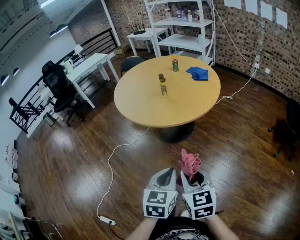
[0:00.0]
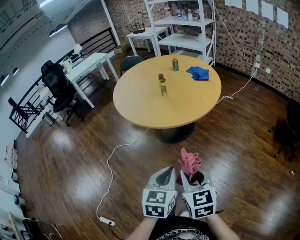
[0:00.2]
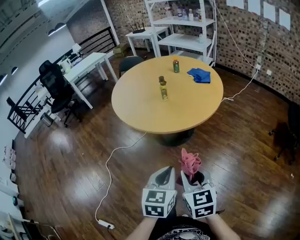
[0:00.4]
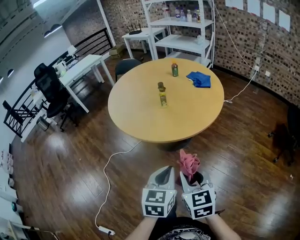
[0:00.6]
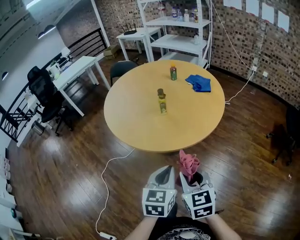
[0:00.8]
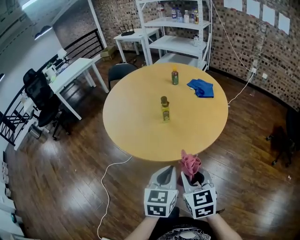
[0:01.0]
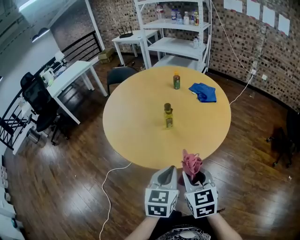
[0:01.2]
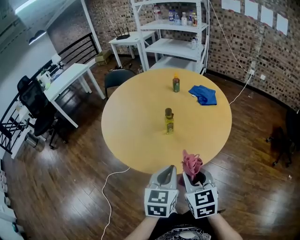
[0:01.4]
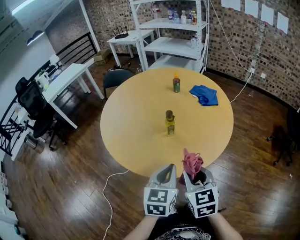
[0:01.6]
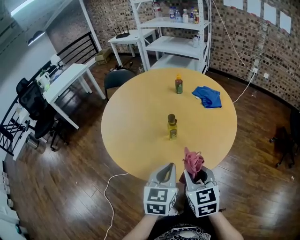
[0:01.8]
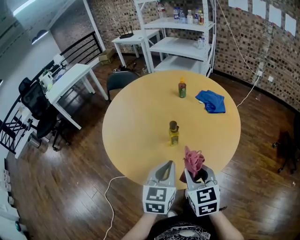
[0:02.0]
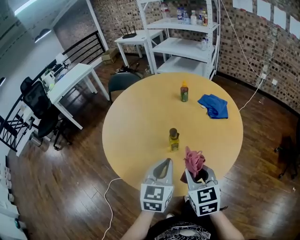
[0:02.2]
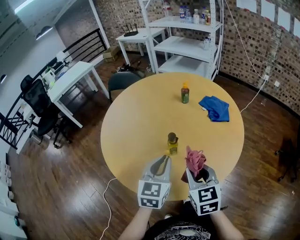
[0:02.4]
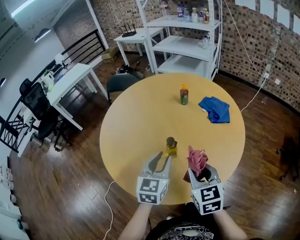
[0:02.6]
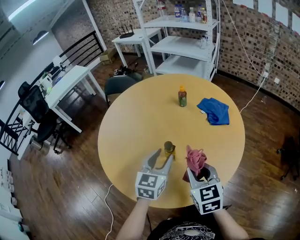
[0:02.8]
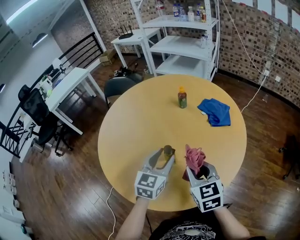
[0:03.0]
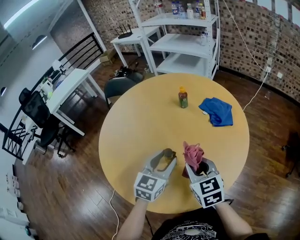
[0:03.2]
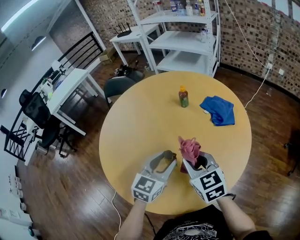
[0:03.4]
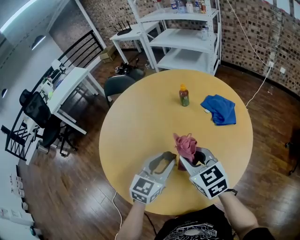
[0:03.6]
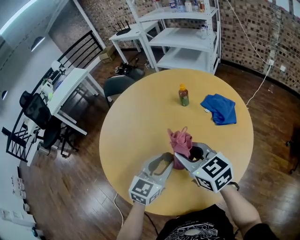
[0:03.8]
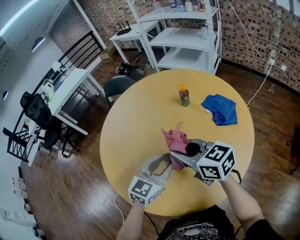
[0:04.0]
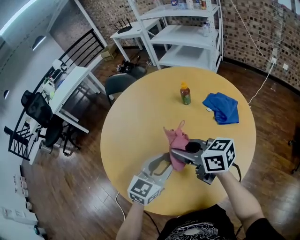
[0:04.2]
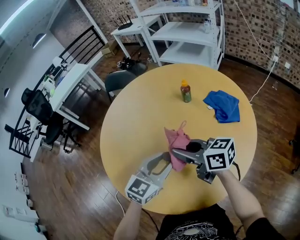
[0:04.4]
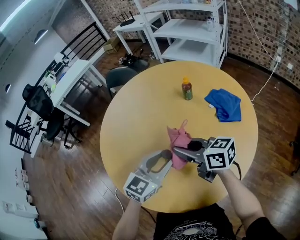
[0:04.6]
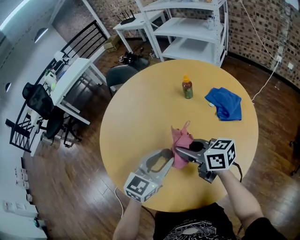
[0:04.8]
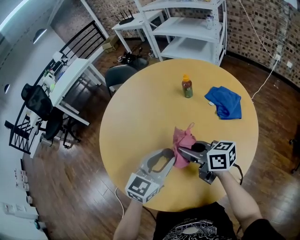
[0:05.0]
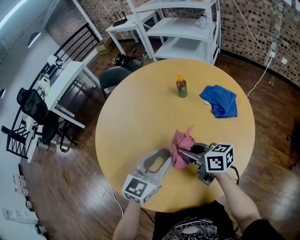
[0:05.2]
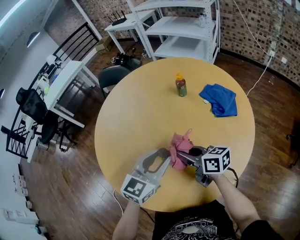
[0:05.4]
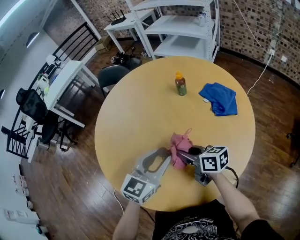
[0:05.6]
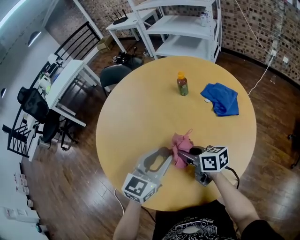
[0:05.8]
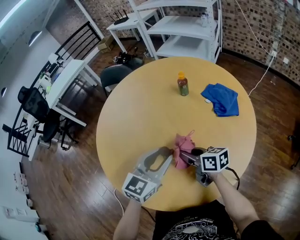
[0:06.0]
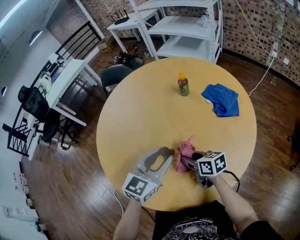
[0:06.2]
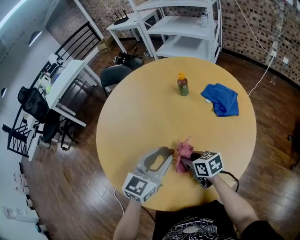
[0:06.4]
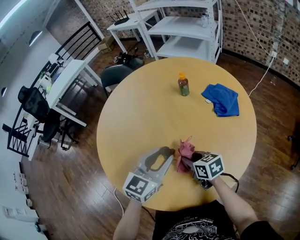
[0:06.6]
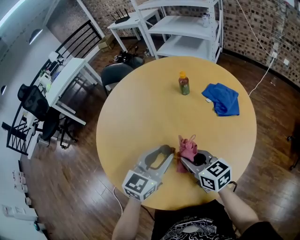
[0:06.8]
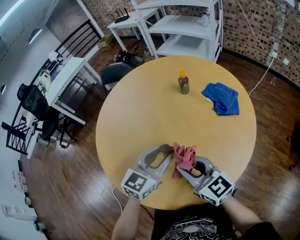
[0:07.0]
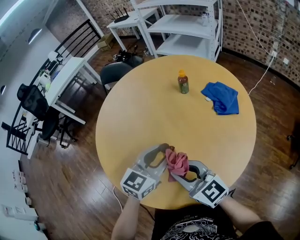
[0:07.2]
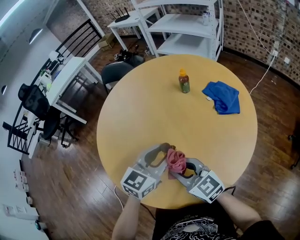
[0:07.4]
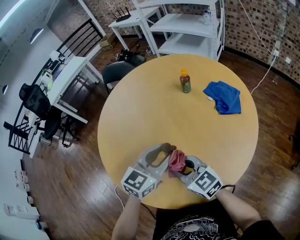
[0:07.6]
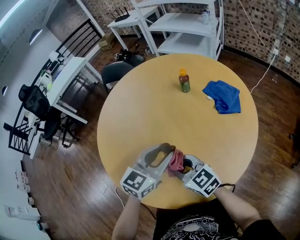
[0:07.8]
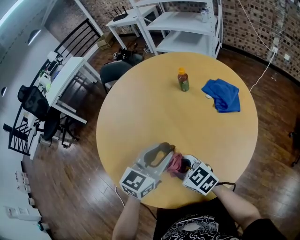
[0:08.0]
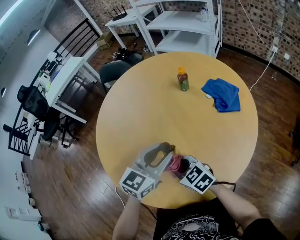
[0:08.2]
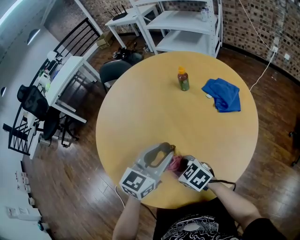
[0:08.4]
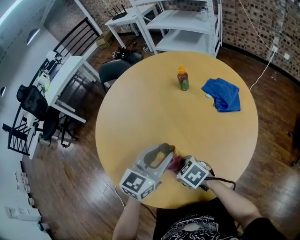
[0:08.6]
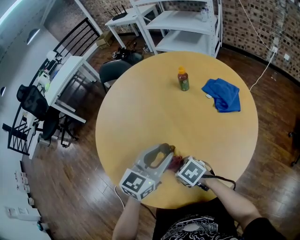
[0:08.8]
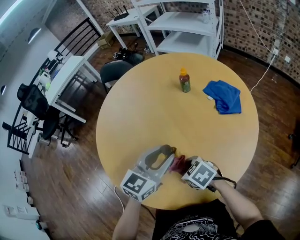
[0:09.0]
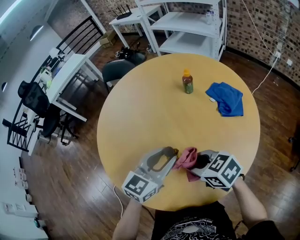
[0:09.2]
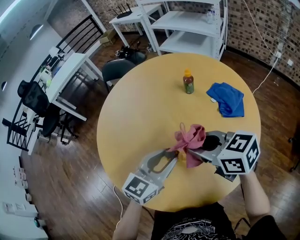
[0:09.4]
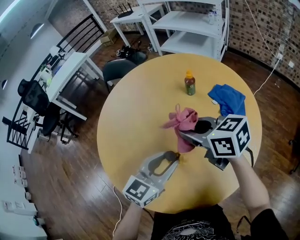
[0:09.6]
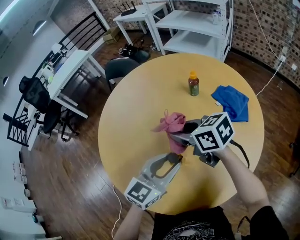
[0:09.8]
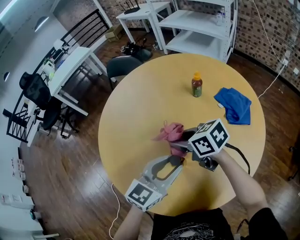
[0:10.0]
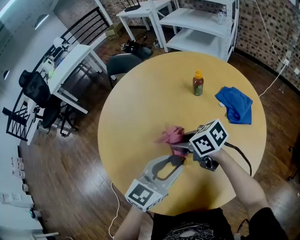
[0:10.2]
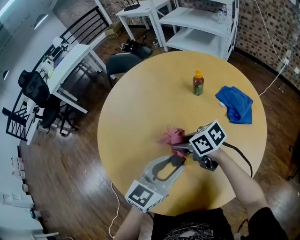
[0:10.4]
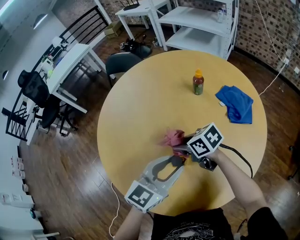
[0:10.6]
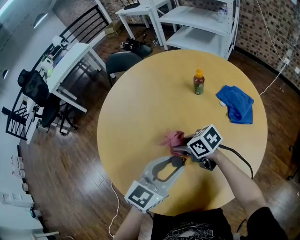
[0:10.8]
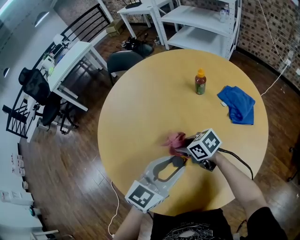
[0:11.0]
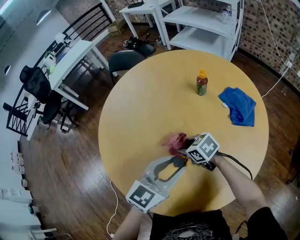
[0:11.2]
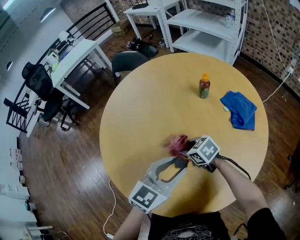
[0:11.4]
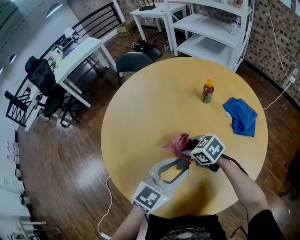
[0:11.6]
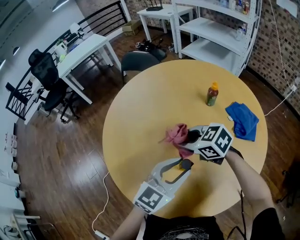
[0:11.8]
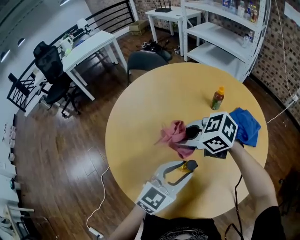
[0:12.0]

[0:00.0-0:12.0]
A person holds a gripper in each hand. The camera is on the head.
0:00.0 to 0:01.6: Both grippers move forward, approximately 35 cm.
0:01.6 to 0:03.0: The grippers both shift forward by some 25 cm. The left gripper opens.
0:03.0 to 0:04.4: The right gripper is displaced forward by roughly 10 cm, and turns by roughly 50 degrees.
0:04.4 to 0:06.0: The right gripper shifts some 15 cm downward, and changes its angle by approximately 20 degrees.
0:06.0 to 0:07.6: The right gripper swings up and down, some 15 cm each way, with 2 reversals, and turns by some 40 degrees.
0:07.6 to 0:09.0: The right gripper moves downward, about 10 cm, and points its fingers some 40 degrees further downward.
0:09.0 to 0:10.4: The right gripper moves forward, approximately 15 cm, travels upward and back again, approximately 20 cm each way, and changes its angle by about 30 degrees.
0:10.4 to 0:12.0: The right gripper travels upward by some 10 cm, and changes its angle by roughly 40 degrees.

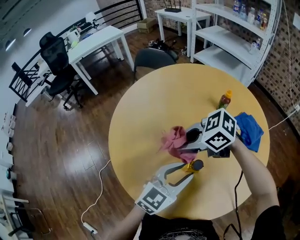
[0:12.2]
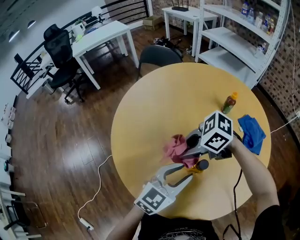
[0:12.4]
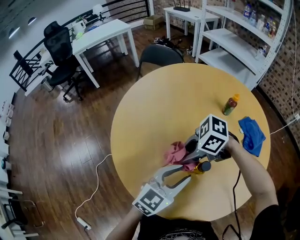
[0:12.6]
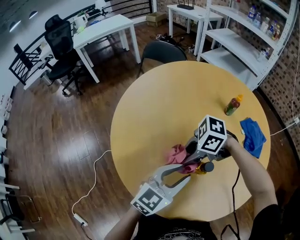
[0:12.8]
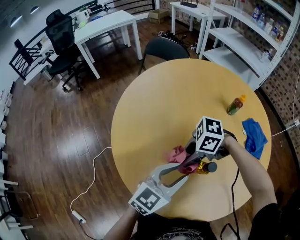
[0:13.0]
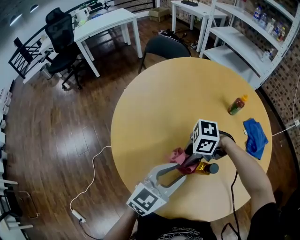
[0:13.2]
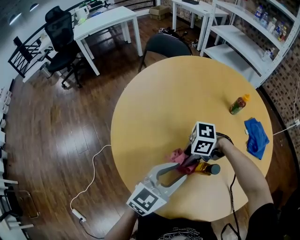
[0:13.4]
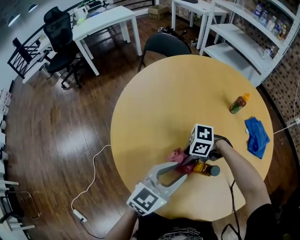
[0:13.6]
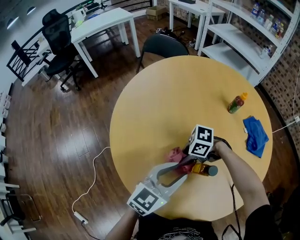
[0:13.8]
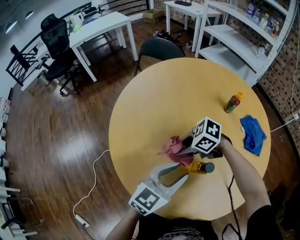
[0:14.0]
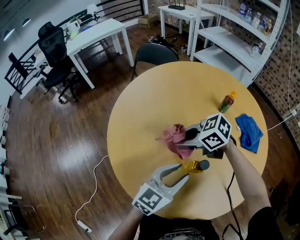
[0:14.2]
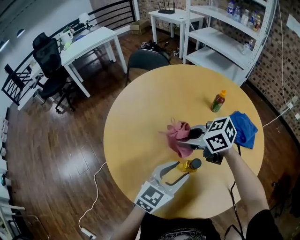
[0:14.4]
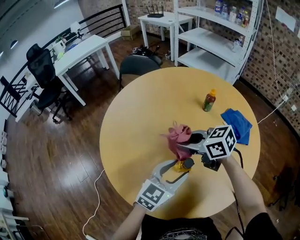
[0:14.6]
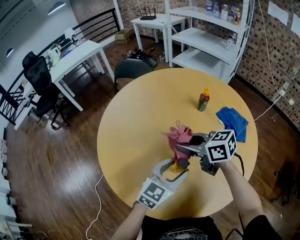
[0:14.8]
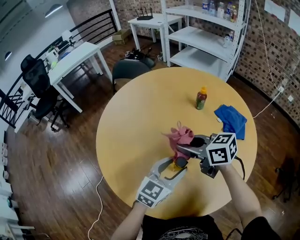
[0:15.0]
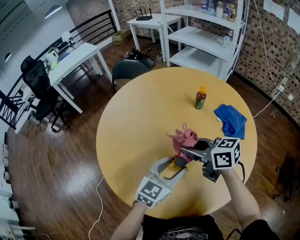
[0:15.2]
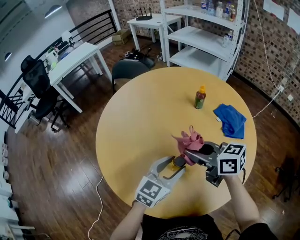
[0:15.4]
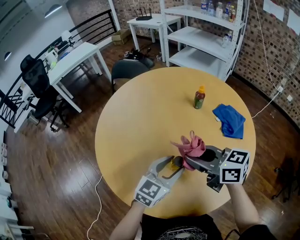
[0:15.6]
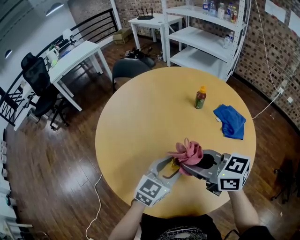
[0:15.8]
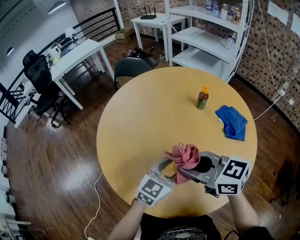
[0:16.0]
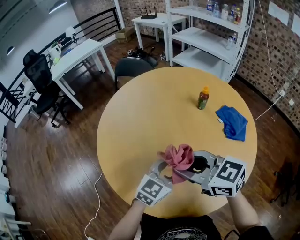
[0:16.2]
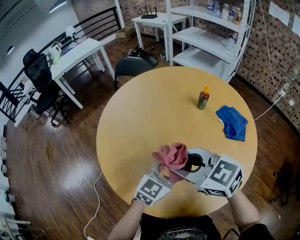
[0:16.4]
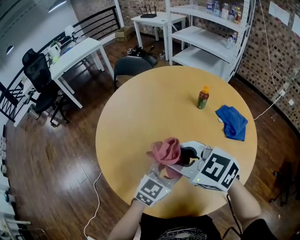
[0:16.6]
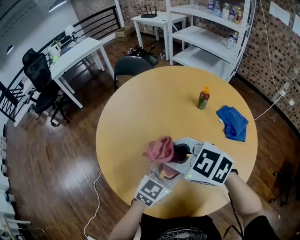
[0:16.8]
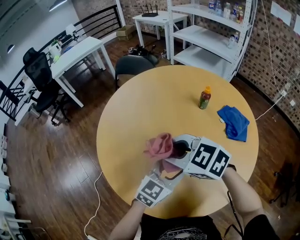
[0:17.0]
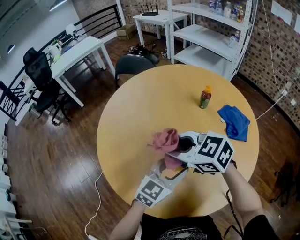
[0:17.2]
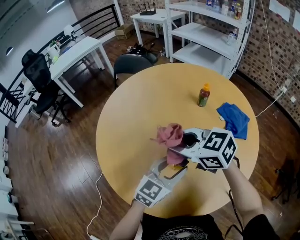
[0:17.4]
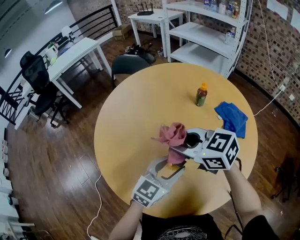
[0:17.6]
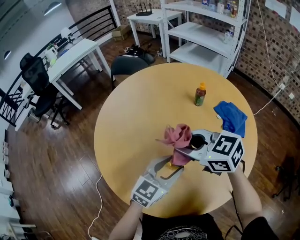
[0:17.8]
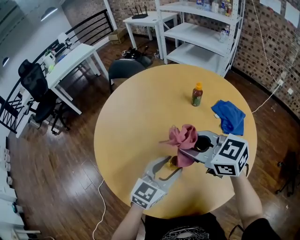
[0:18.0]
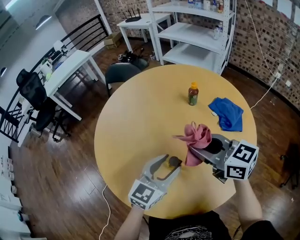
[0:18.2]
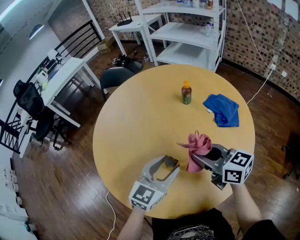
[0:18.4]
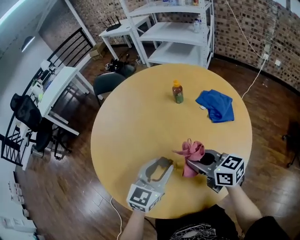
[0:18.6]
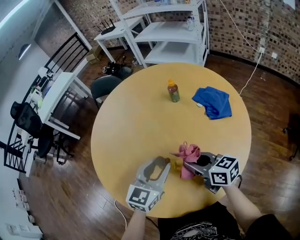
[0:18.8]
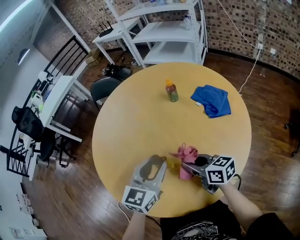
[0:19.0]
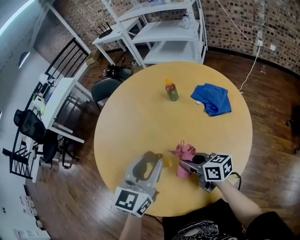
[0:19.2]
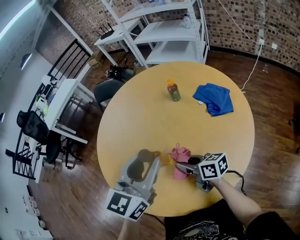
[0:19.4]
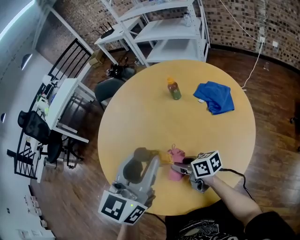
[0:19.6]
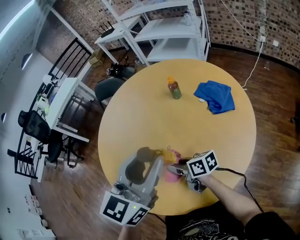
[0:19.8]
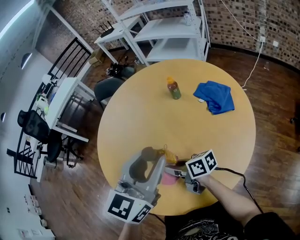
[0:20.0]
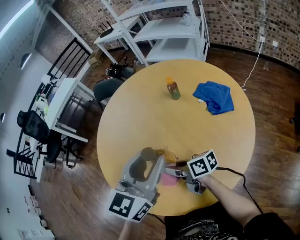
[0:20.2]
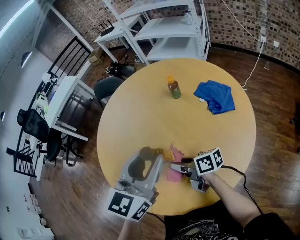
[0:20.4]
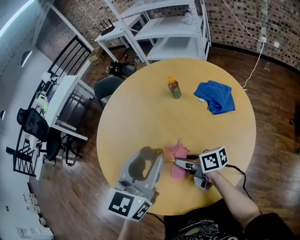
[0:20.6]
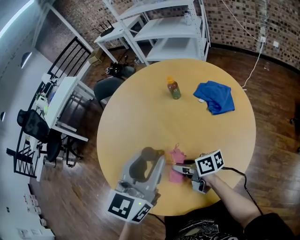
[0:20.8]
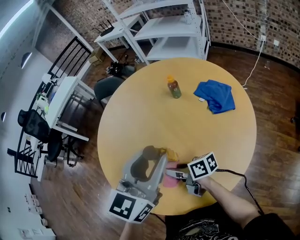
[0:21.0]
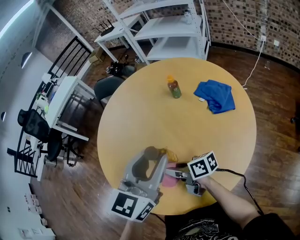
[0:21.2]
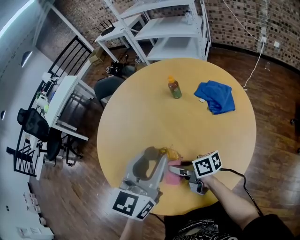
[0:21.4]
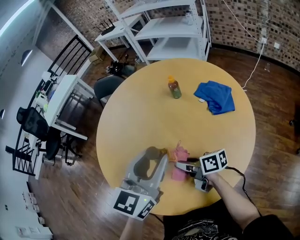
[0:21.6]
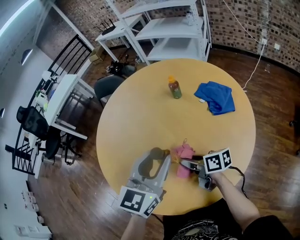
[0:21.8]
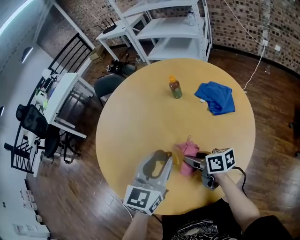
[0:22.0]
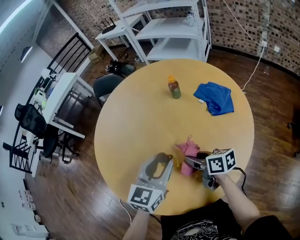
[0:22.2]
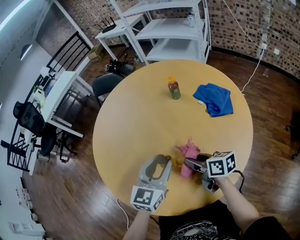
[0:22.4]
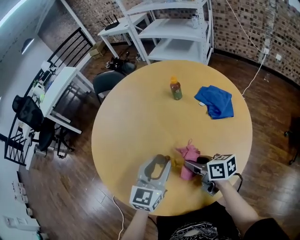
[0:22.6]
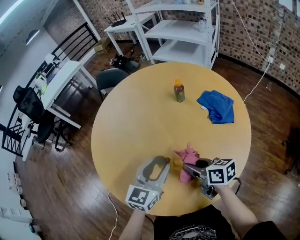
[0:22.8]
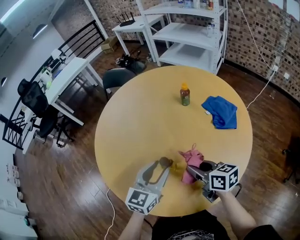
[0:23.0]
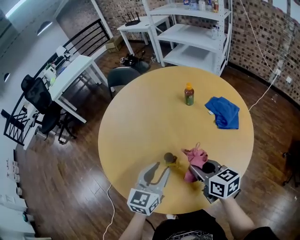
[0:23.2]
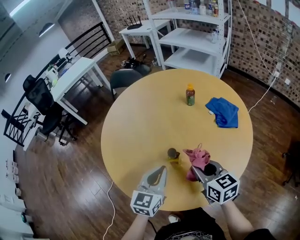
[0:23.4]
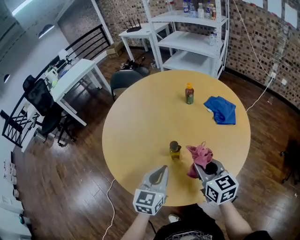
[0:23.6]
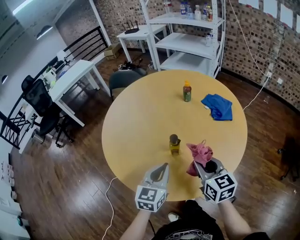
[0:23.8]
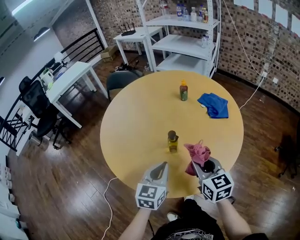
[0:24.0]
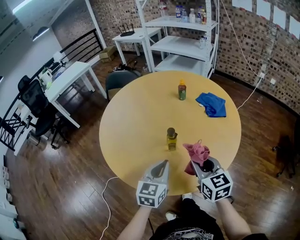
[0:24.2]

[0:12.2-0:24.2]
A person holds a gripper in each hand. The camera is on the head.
0:12.2 to 0:13.8: The left gripper changes place by about 5 cm. Meanwhile the right gripper travels downward by approximately 15 cm, and turns by roughly 30 degrees.
0:13.8 to 0:15.2: The left gripper changes place by approximately 10 cm. The right gripper moves upward, roughly 20 cm, and changes its angle by some 80 degrees.
0:15.2 to 0:16.6: The right gripper travels to the left, upward and backward by some 10 cm, and rotates some 40 degrees.
0:16.6 to 0:18.2: The right gripper is displaced to the right by some 10 cm, and changes its angle by some 30 degrees.
0:18.2 to 0:19.8: The right gripper shifts approximately 20 cm downward and to the left, and twists some 40 degrees clockwise, seen from behind; the left gripper goes roughly 15 cm upward.
0:19.8 to 0:21.2: There are only small adjustments of the grippers.
0:21.2 to 0:22.6: The right gripper heads to the right, covering some 10 cm, and swivels some 20 degrees. Meanwhile the left gripper travels downward by approximately 15 cm.
0:22.6 to 0:24.2: The right gripper shifts approximately 15 cm backward and upward, and changes its angle by about 40 degrees, while the left gripper moves backward and to the left, about 15 cm, and closes up.
